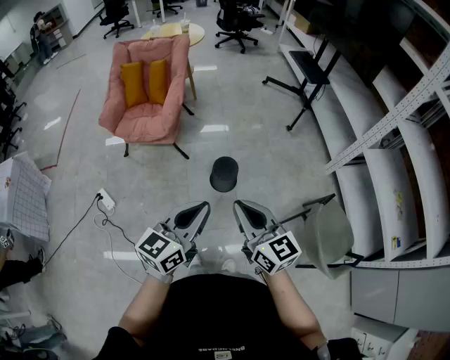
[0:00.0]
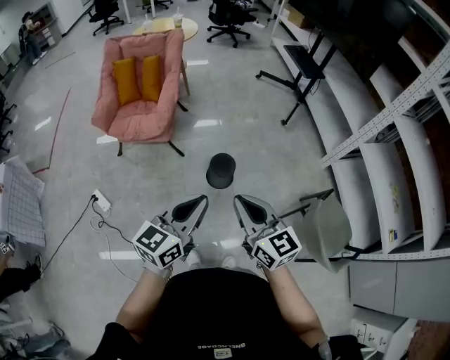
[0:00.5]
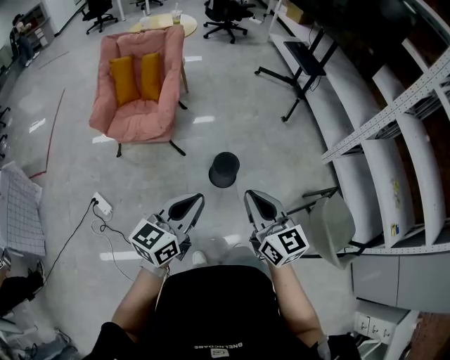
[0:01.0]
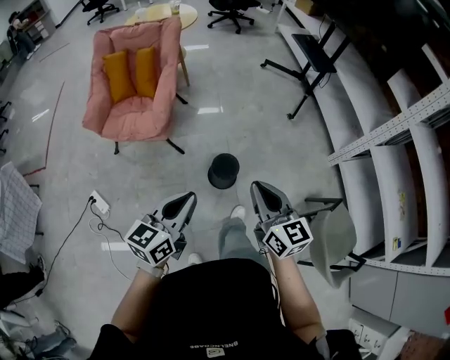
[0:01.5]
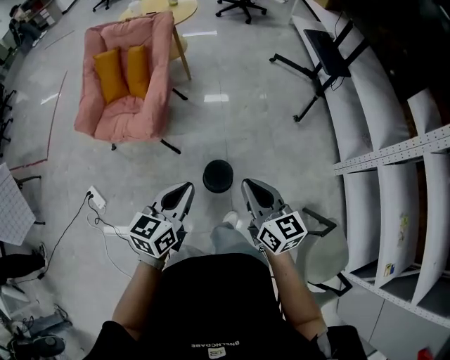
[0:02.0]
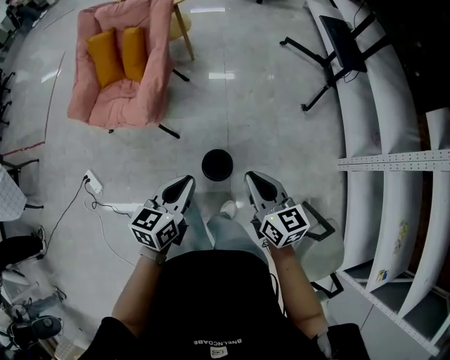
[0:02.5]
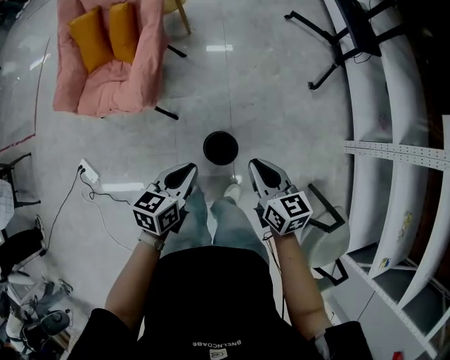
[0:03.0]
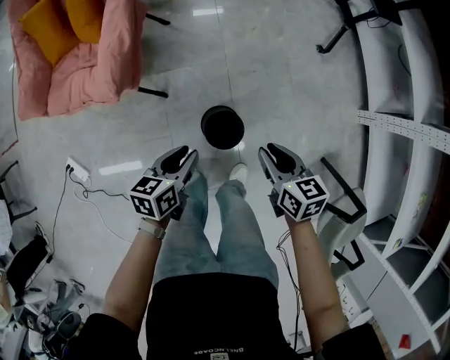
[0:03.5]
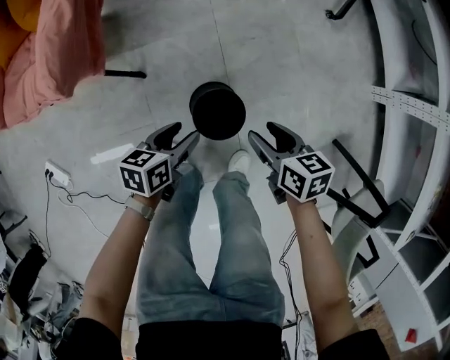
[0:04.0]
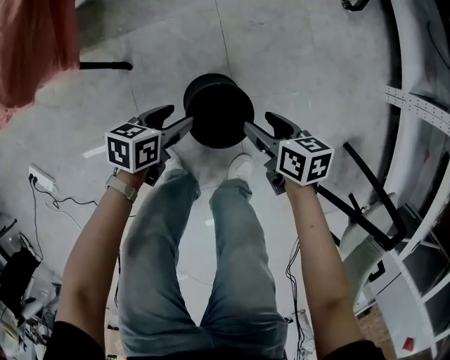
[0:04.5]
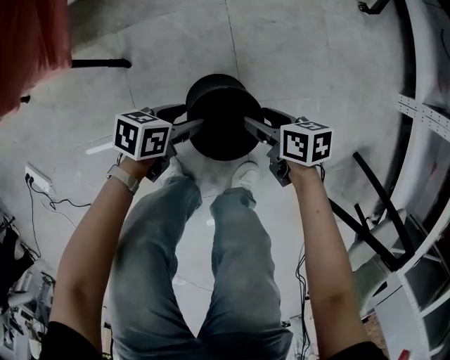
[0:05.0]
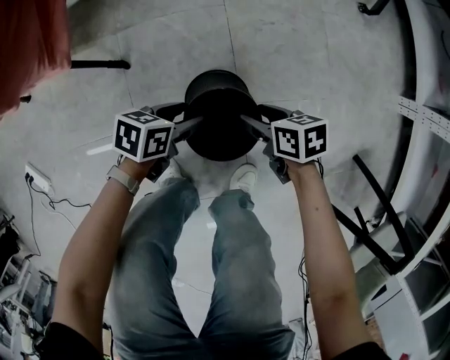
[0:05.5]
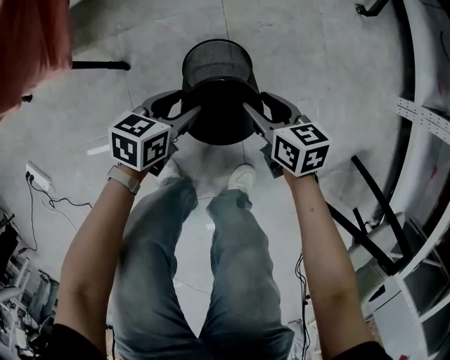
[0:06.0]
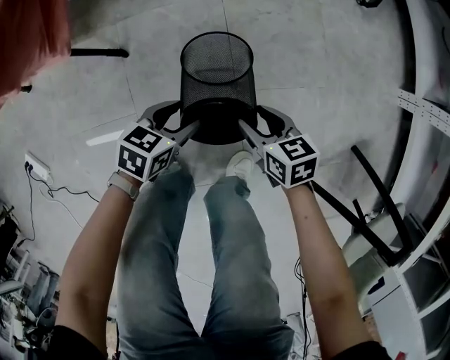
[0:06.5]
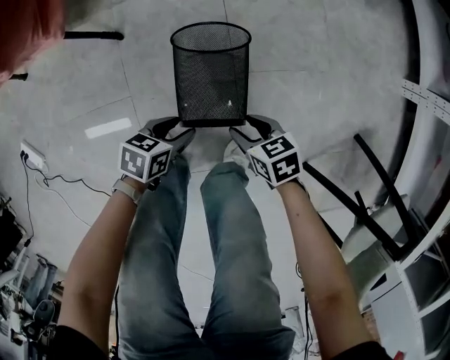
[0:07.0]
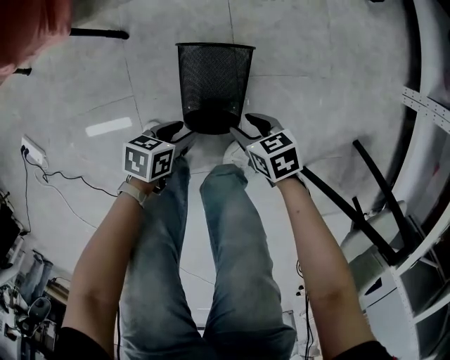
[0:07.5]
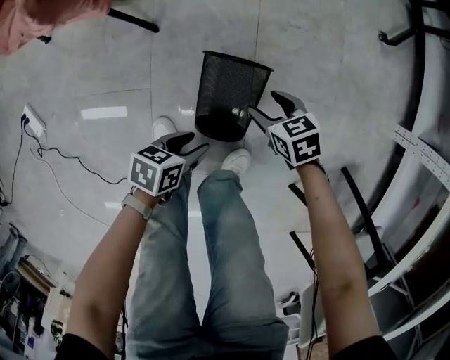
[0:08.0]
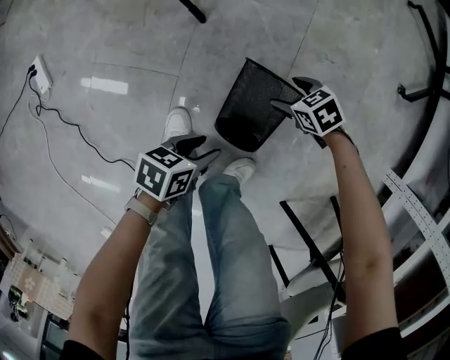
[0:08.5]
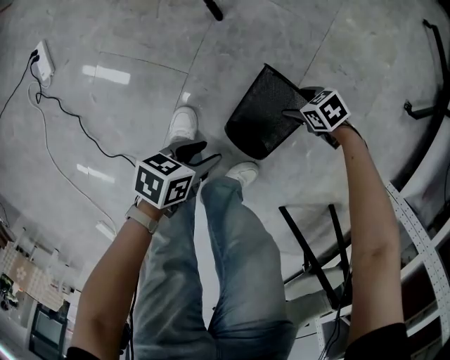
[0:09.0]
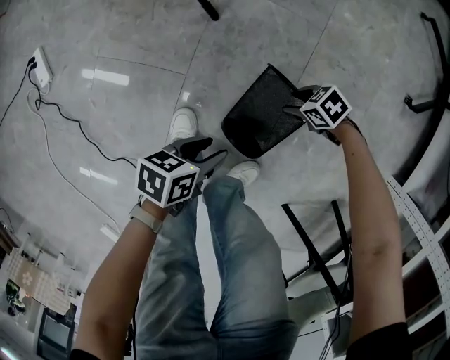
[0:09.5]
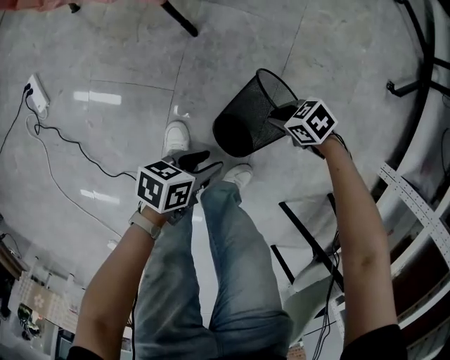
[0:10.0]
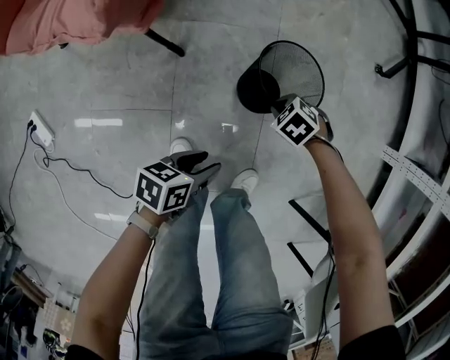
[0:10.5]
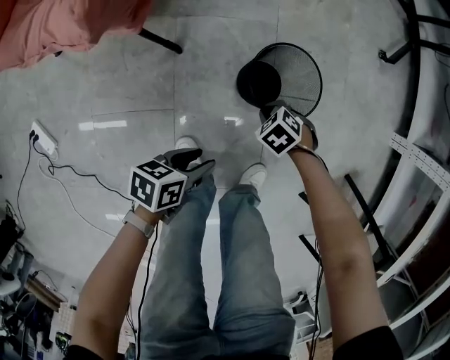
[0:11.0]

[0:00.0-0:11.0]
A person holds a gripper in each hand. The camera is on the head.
0:00.0 to 0:02.0: Both grippers move forward, some 30 cm.
0:02.0 to 0:03.5: Both grippers travel together downward and forward, some 30 cm. The left gripper swivels some 30 degrees, and opens its fingers; the right gripper turns by roughly 30 degrees.
0:03.5 to 0:05.5: Both grippers move downward, roughly 40 cm. The left gripper turns by about 30 degrees, and opens. The right gripper swivels some 30 degrees, and opens its fingers.
0:05.5 to 0:07.5: The right gripper ends up roughly 15 cm from where it was. Meanwhile the left gripper moves roughly 15 cm.
0:07.5 to 0:09.0: The left gripper moves some 10 cm, and swivels roughly 30 degrees, while the right gripper shifts by some 15 cm, changes its angle by some 50 degrees, and opens.
0:09.0 to 0:11.0: The left gripper changes place by some 5 cm; the right gripper moves upward, approximately 5 cm, changes its angle by roughly 20 degrees, and closes its fingers.

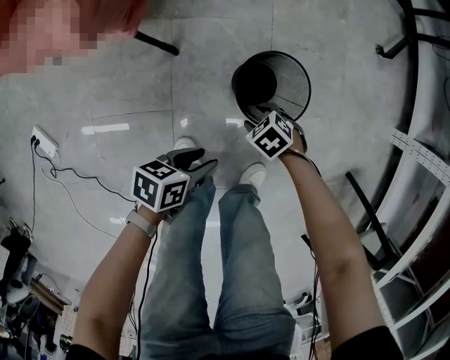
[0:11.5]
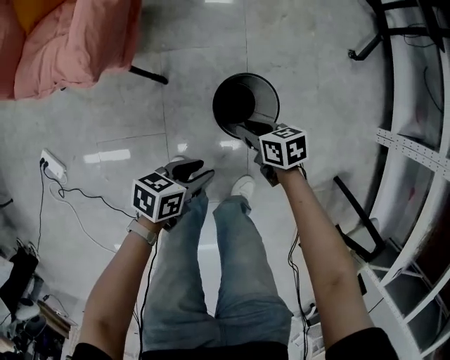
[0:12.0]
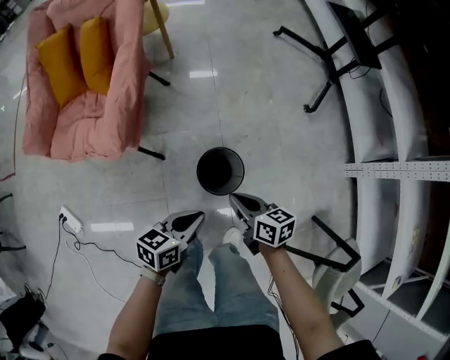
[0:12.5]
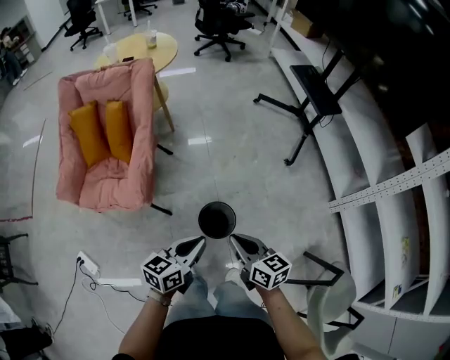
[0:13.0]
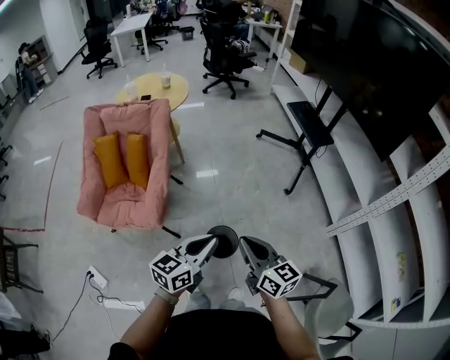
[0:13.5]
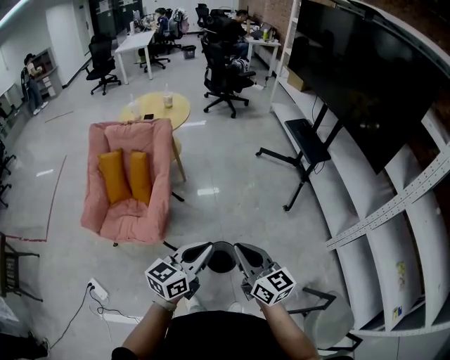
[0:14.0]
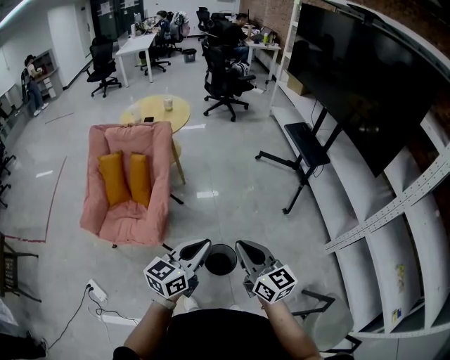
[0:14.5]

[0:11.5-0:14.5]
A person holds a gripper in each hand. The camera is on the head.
0:11.5 to 0:13.0: Both grippers travel together upward, about 50 cm. The left gripper changes its angle by roughly 40 degrees, and closes its fingers. Meanwhile the right gripper points its fingers approximately 60 degrees further upward, and closes its fingers.
0:13.0 to 0:14.5: The grippers both shift upward by roughly 20 cm. The right gripper changes its angle by about 20 degrees.

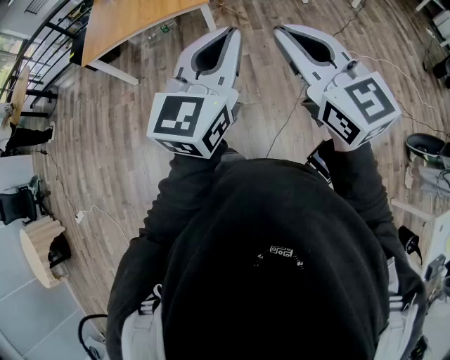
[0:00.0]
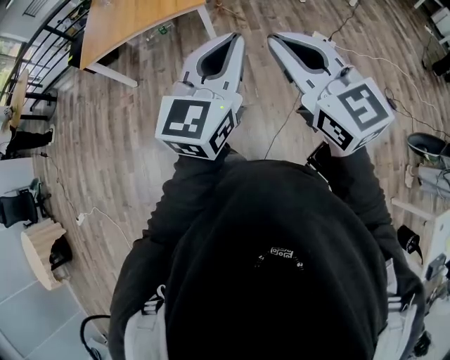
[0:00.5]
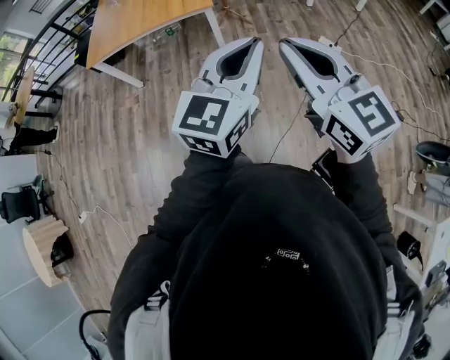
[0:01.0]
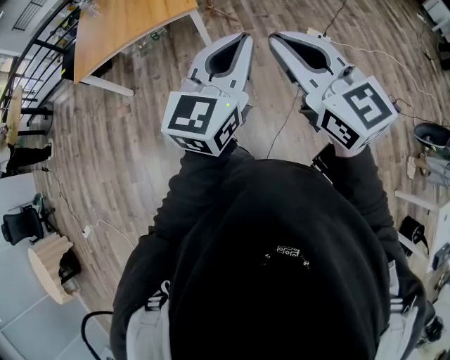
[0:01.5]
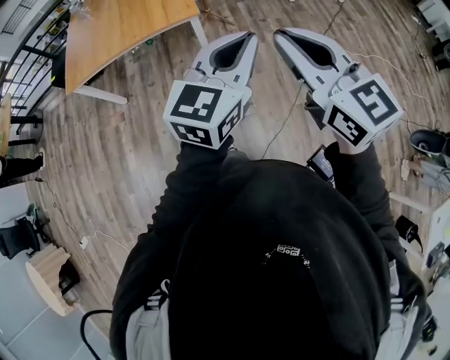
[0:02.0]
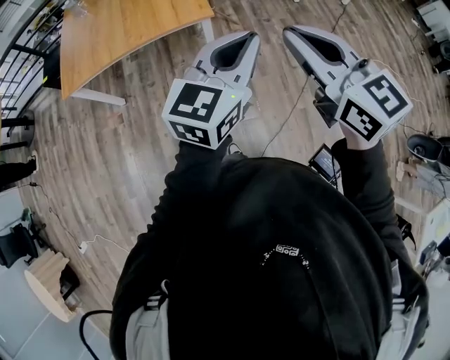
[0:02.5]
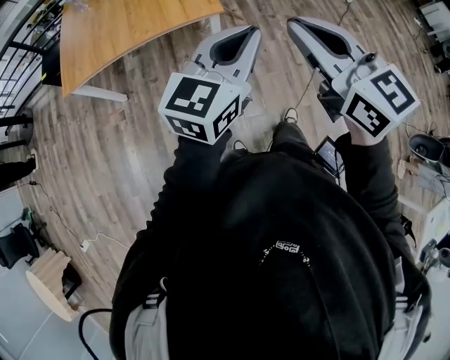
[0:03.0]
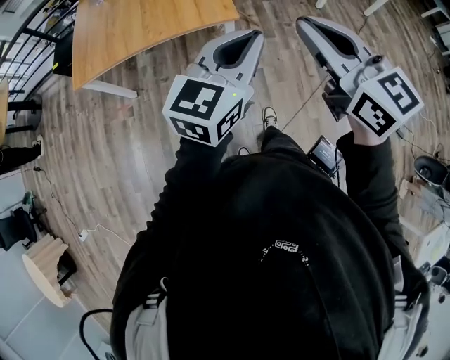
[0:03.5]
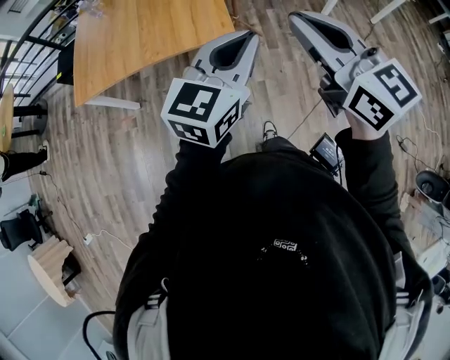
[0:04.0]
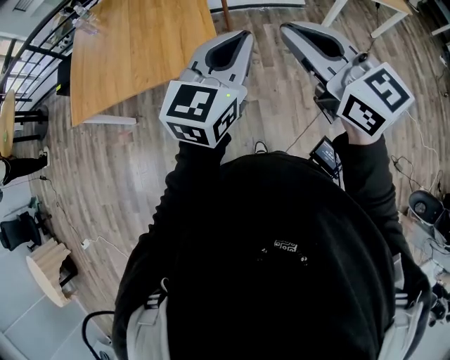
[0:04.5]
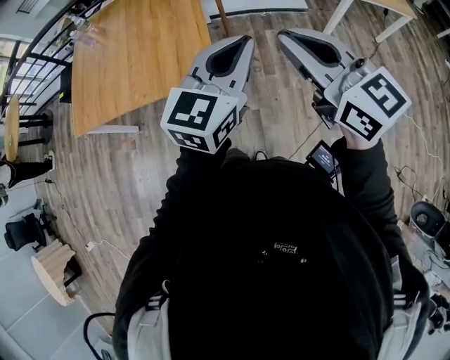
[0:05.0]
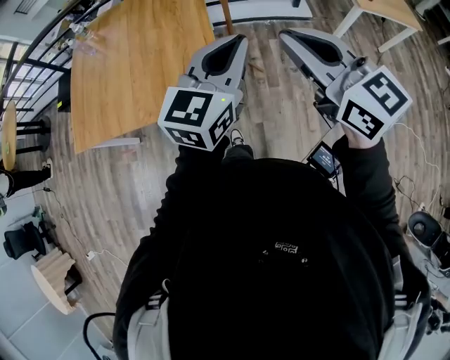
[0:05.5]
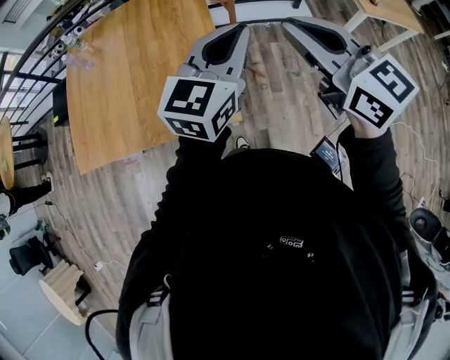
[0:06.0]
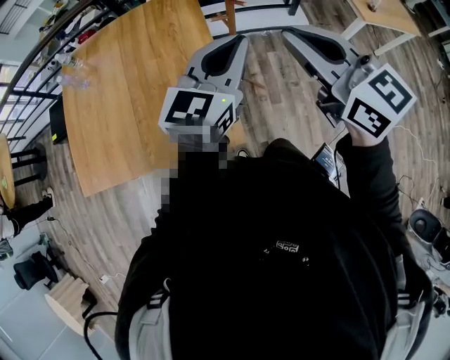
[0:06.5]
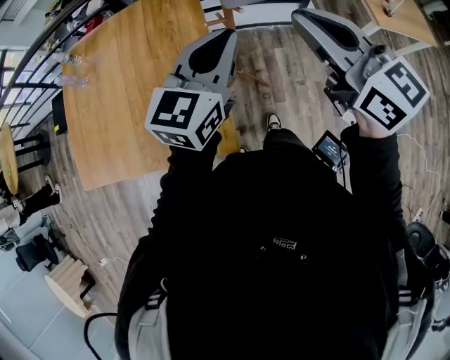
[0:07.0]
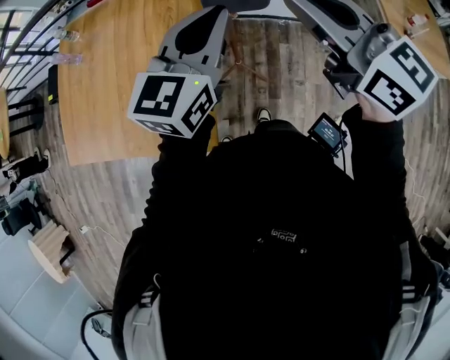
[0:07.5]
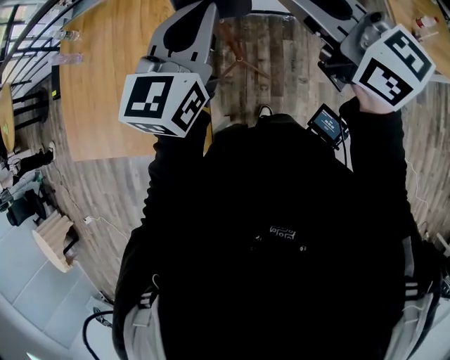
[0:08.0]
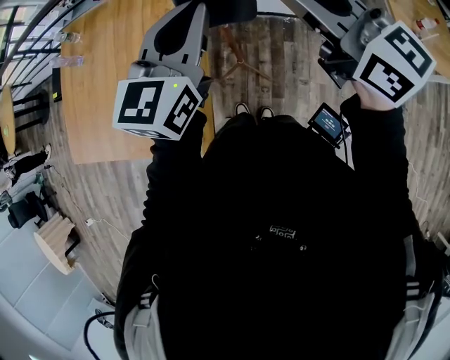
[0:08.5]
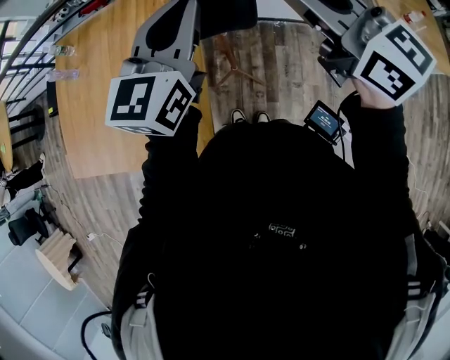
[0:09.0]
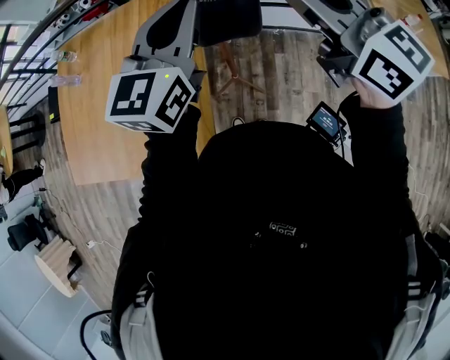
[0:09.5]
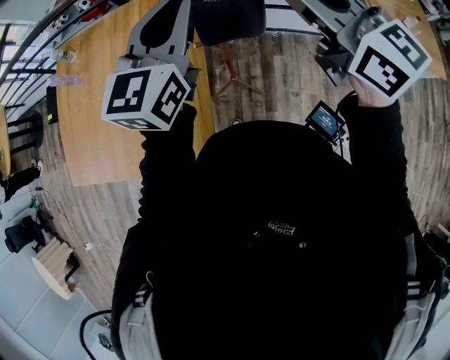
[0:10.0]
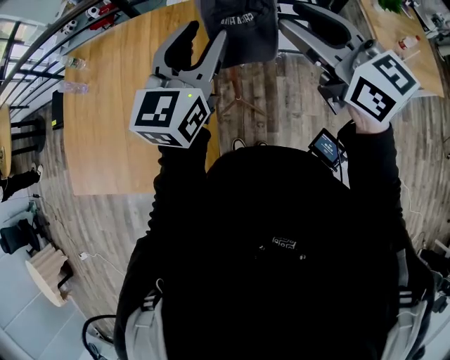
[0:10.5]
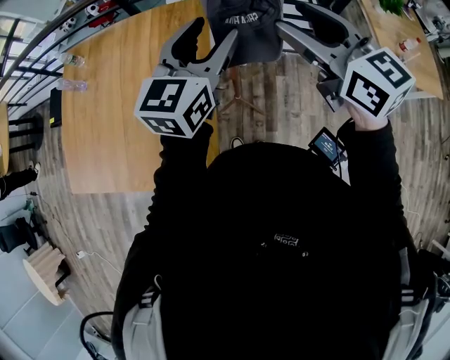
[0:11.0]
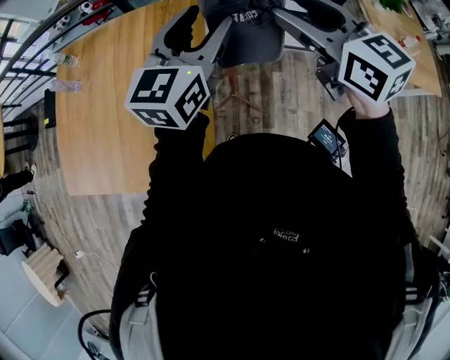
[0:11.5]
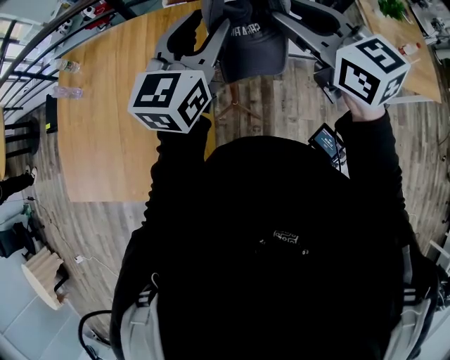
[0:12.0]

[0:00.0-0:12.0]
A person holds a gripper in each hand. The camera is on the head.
0:00.0 to 0:02.0: The two grippers go about 15 cm forward.
0:02.0 to 0:04.0: Both grippers travel together forward, about 30 cm.
0:04.0 to 0:06.0: Both grippers travel together forward, about 40 cm.
0:06.0 to 0:08.0: The two grippers go some 30 cm forward and to the right.
0:08.0 to 0:10.0: The left gripper moves upward and to the left, some 10 cm, while the right gripper travels upward by roughly 5 cm.
0:10.0 to 0:12.0: The right gripper travels forward and downward by roughly 10 cm, and opens; the left gripper travels forward by roughly 5 cm, and opens.
